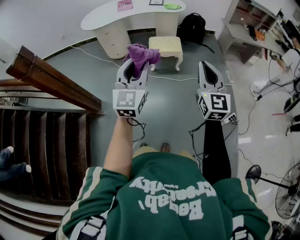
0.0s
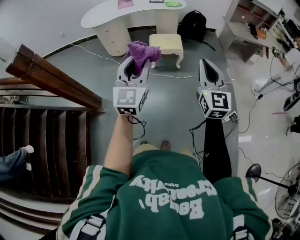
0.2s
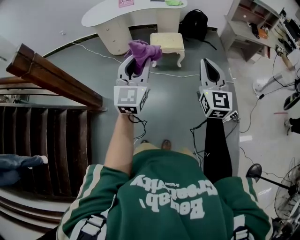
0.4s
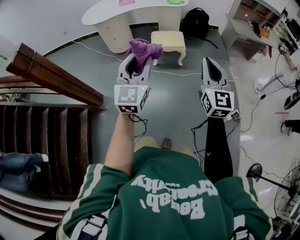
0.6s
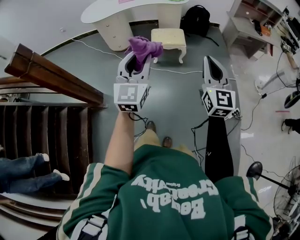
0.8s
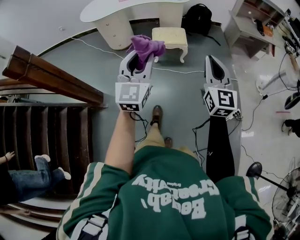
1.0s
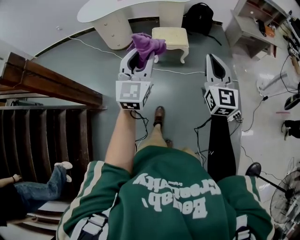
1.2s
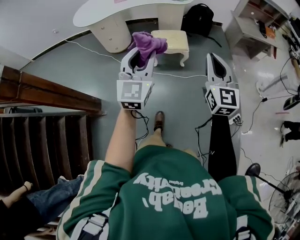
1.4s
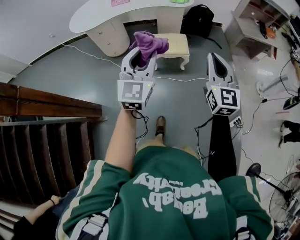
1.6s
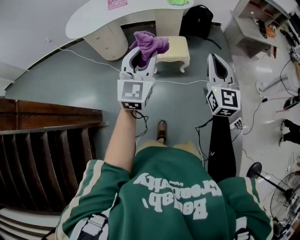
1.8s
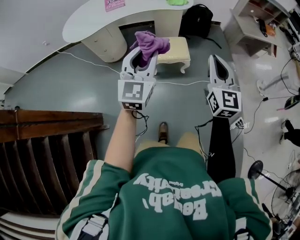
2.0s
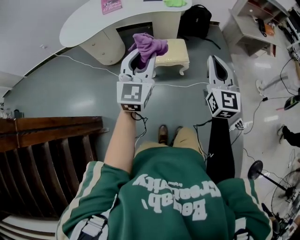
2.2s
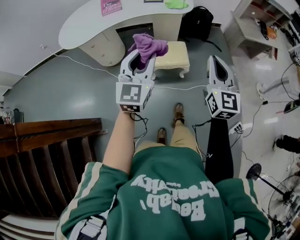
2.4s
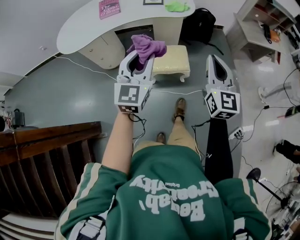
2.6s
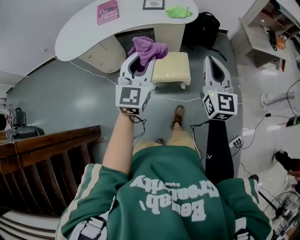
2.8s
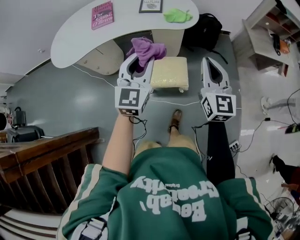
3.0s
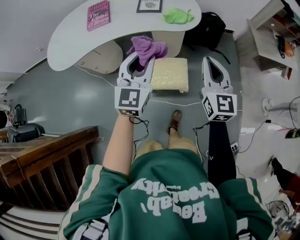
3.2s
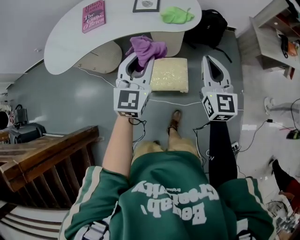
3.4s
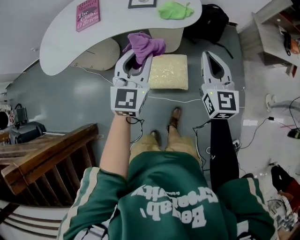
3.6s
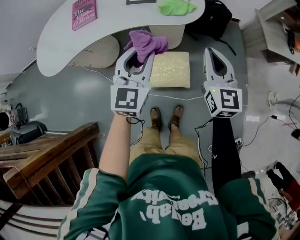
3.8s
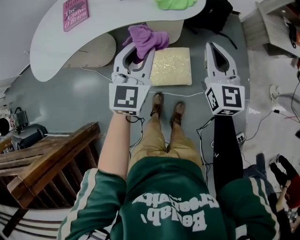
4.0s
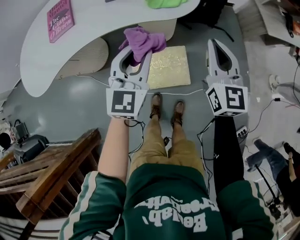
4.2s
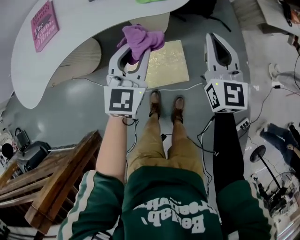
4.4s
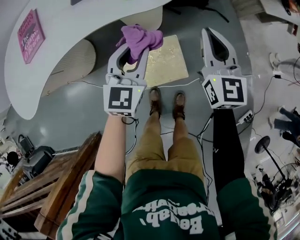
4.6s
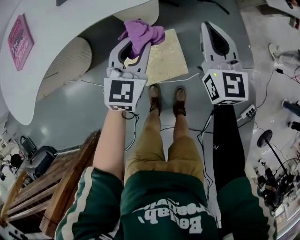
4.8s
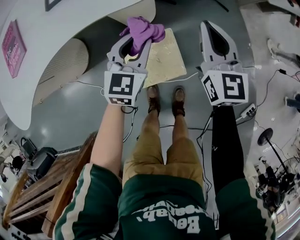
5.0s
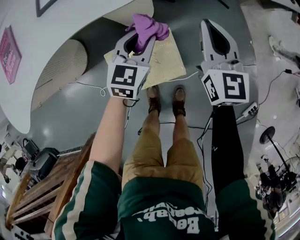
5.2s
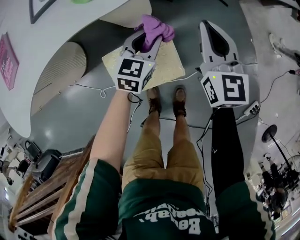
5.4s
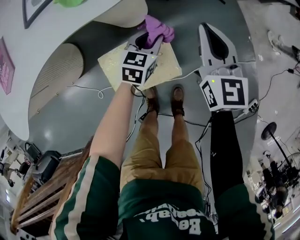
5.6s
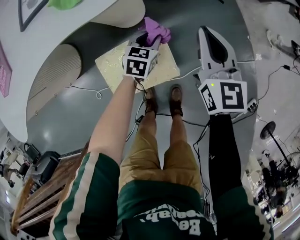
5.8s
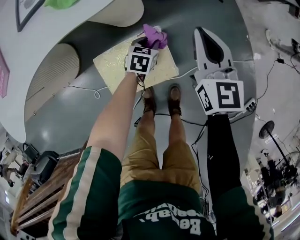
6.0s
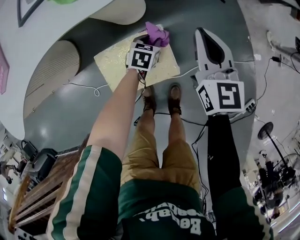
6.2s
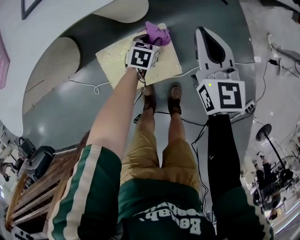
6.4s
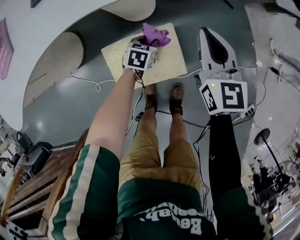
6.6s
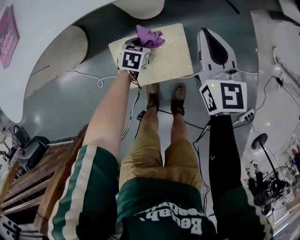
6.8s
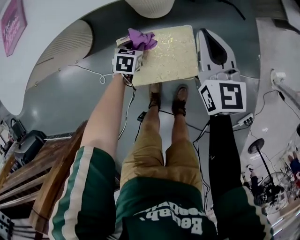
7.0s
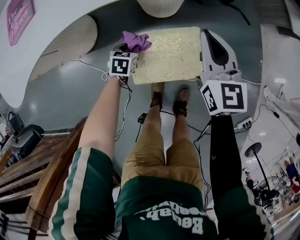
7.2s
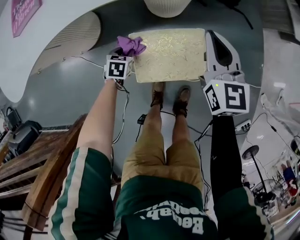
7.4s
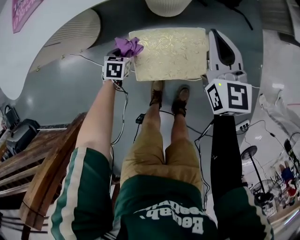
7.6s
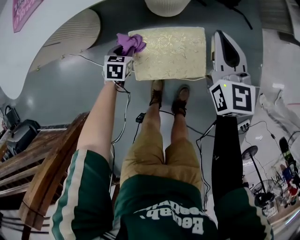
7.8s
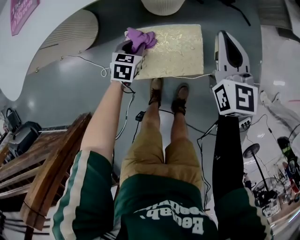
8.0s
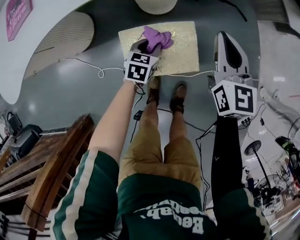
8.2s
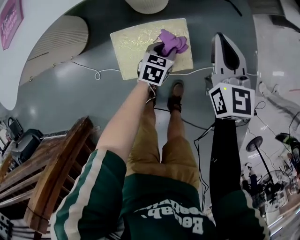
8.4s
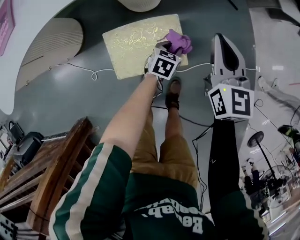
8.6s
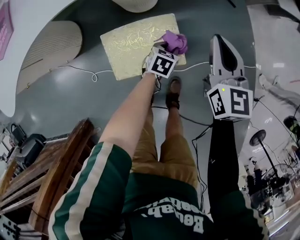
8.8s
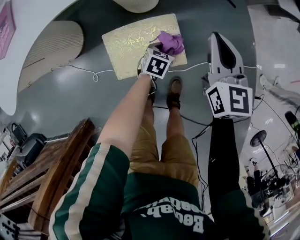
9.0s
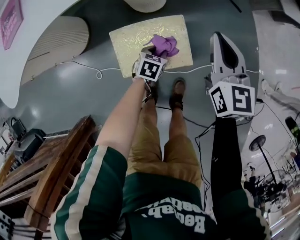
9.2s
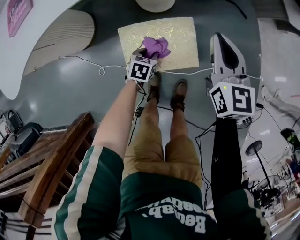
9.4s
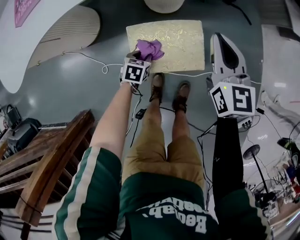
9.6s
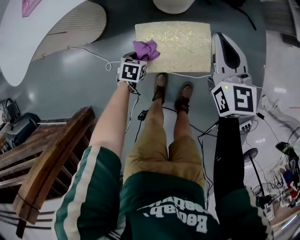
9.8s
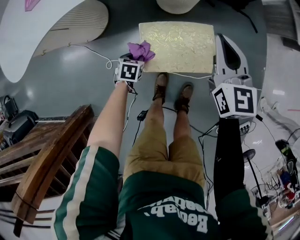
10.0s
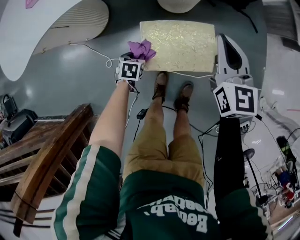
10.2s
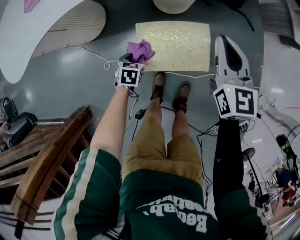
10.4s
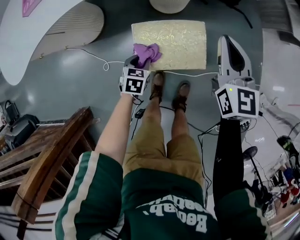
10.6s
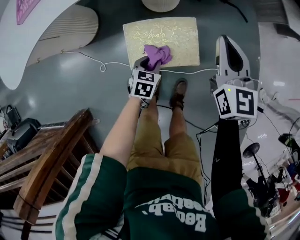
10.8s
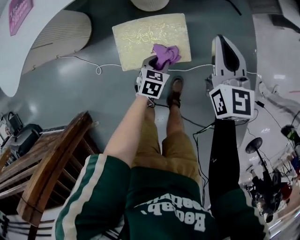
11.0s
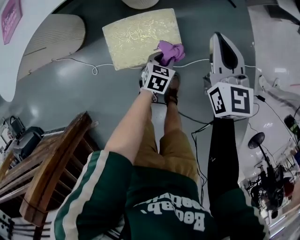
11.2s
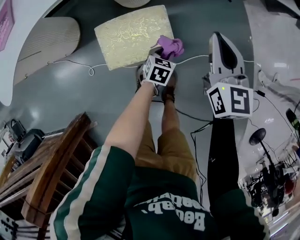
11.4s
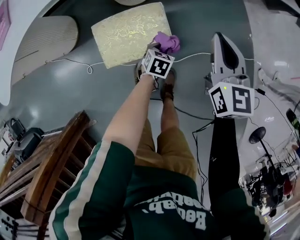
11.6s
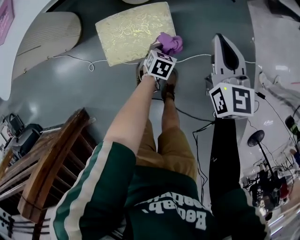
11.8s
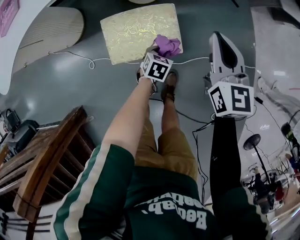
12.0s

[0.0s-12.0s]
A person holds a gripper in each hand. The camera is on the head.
0.0s to 1.6s: The grippers both shift forward by roughly 20 cm.
1.6s to 3.0s: The grippers both shift forward by approximately 35 cm.
3.0s to 4.4s: The grippers both shift forward and downward by some 25 cm.
4.4s to 6.0s: The left gripper shifts approximately 40 cm downward, and points its fingers approximately 40 degrees further downward. Meanwhile the right gripper moves downward, about 15 cm.
6.0s to 7.6s: The right gripper goes approximately 15 cm to the left; the left gripper shifts some 35 cm to the left and backward, and turns by some 20 degrees.
7.6s to 9.0s: The left gripper heads to the right, covering roughly 30 cm, and turns by some 20 degrees; the right gripper moves to the right, some 15 cm.
9.0s to 10.4s: The right gripper travels to the left by approximately 15 cm, while the left gripper shifts roughly 25 cm to the left, and changes its angle by some 20 degrees.
10.4s to 12.0s: The right gripper moves to the right, some 15 cm; the left gripper travels to the right by approximately 25 cm.

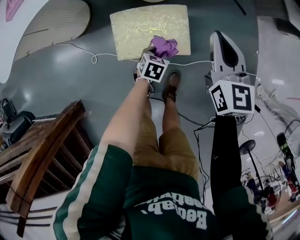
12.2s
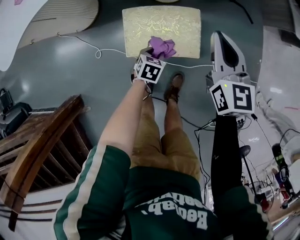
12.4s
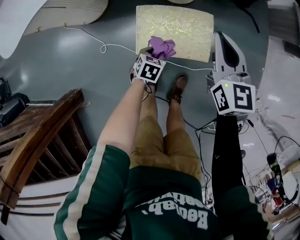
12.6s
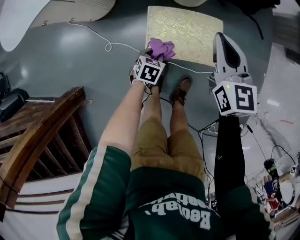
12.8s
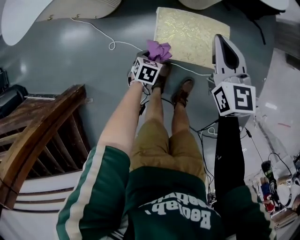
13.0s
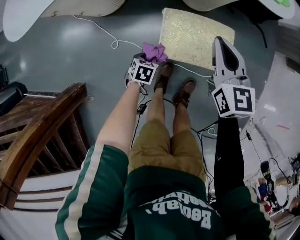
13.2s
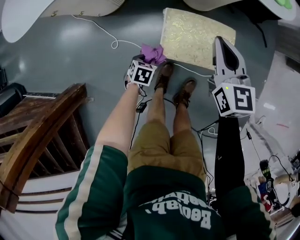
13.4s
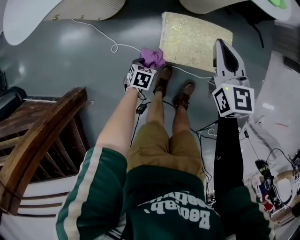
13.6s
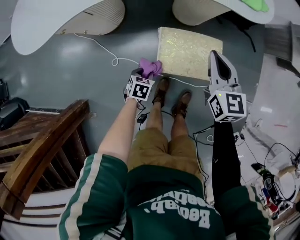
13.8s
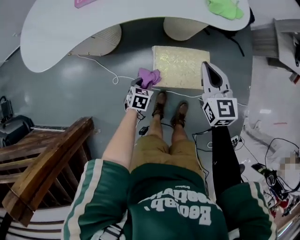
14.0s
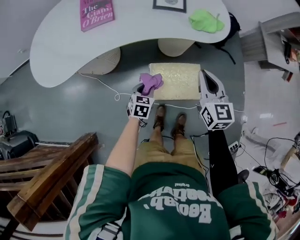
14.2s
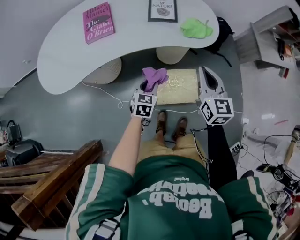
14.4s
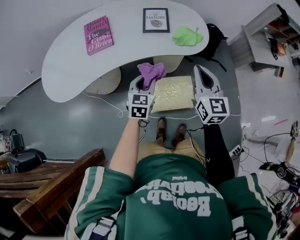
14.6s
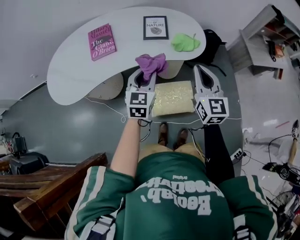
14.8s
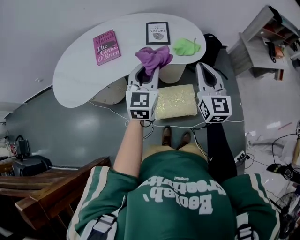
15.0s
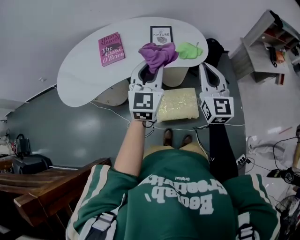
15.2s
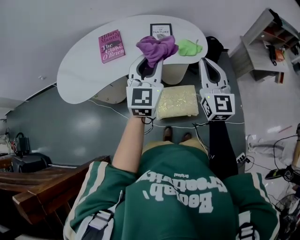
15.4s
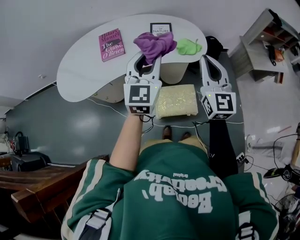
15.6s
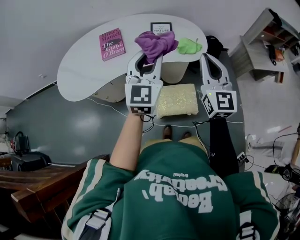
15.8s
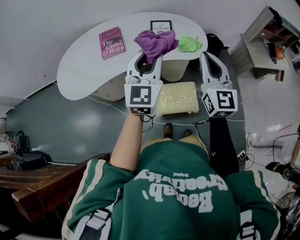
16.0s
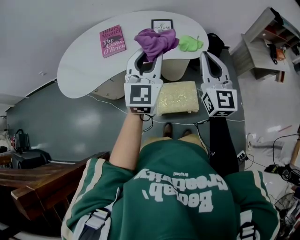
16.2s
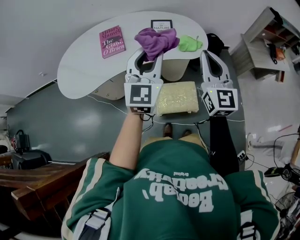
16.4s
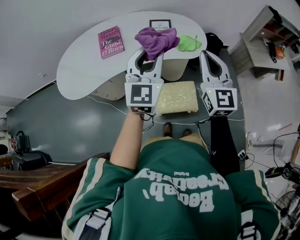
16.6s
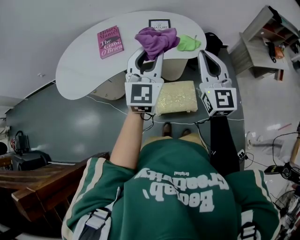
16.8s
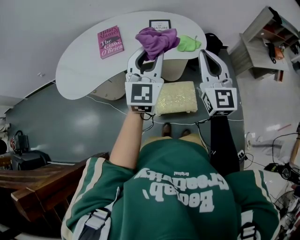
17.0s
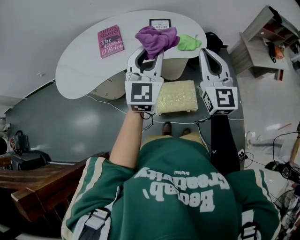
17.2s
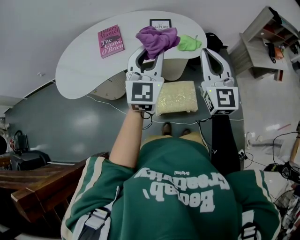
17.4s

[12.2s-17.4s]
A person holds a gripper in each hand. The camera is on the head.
12.2s to 14.0s: The left gripper heads to the left and upward, covering roughly 25 cm; the right gripper travels to the left by approximately 20 cm.
14.0s to 15.6s: The right gripper is displaced upward by about 30 cm, and turns by approximately 30 degrees, while the left gripper goes about 60 cm upward, and tips its fingers upward by about 60 degrees.
15.6s to 17.4s: The grippers move only a little.

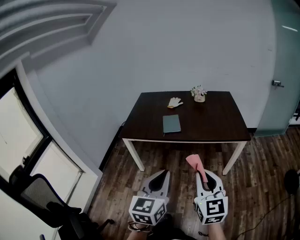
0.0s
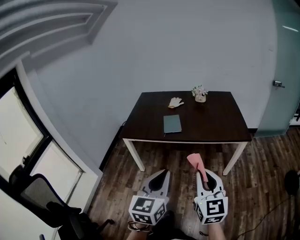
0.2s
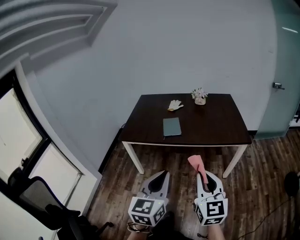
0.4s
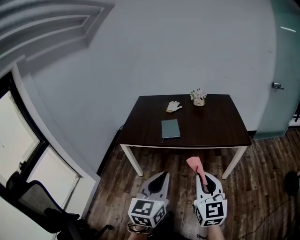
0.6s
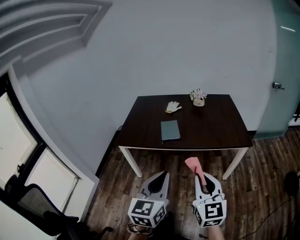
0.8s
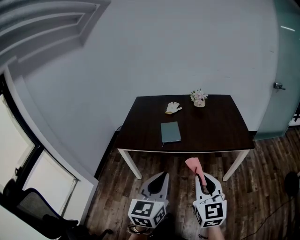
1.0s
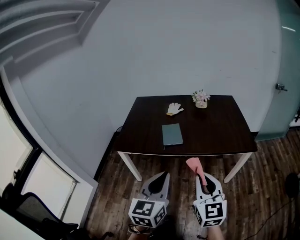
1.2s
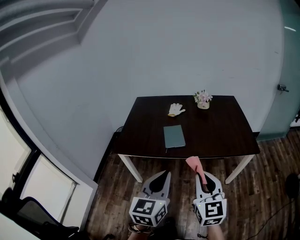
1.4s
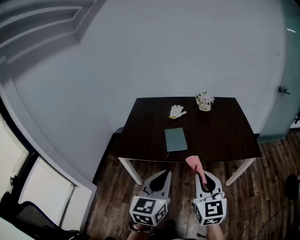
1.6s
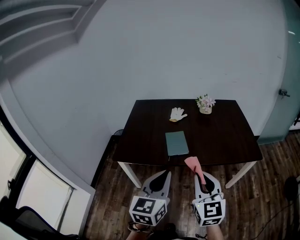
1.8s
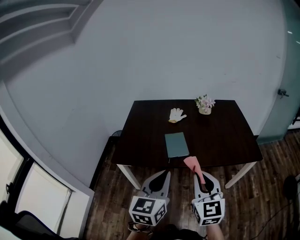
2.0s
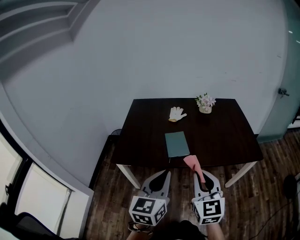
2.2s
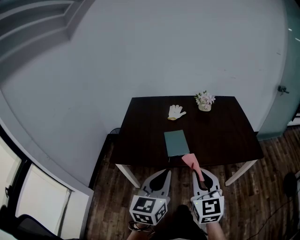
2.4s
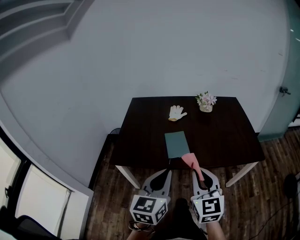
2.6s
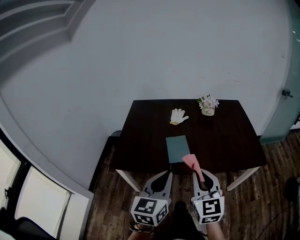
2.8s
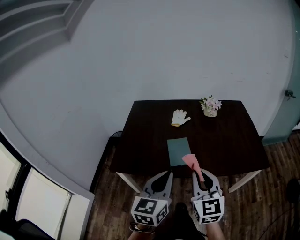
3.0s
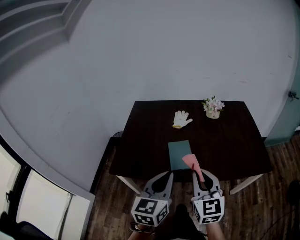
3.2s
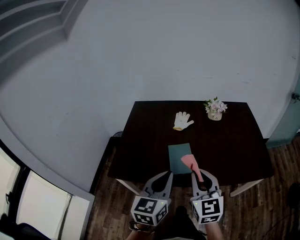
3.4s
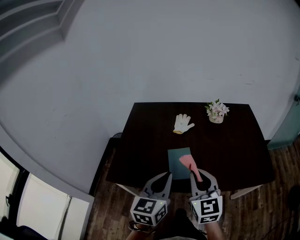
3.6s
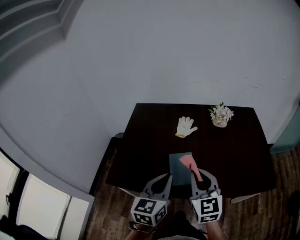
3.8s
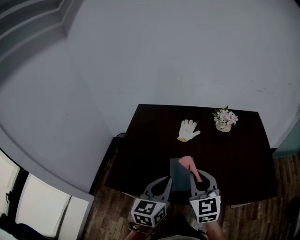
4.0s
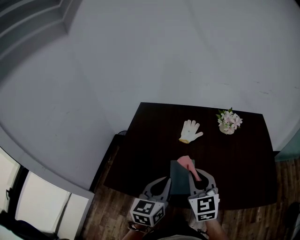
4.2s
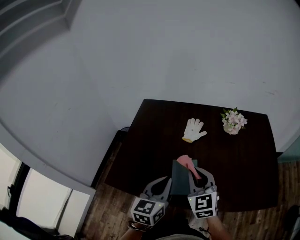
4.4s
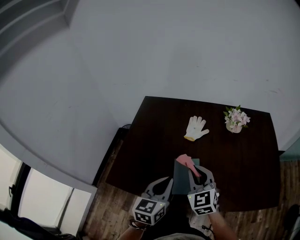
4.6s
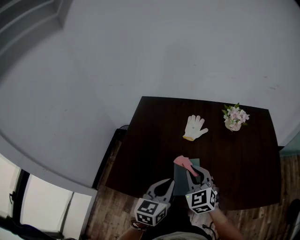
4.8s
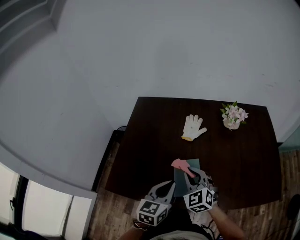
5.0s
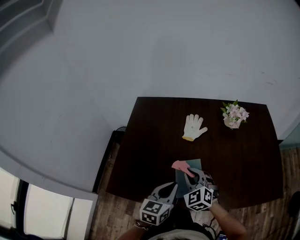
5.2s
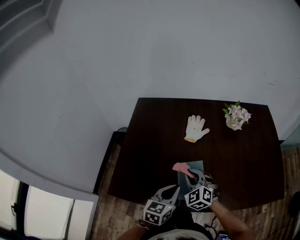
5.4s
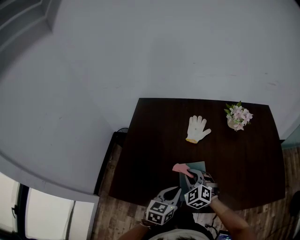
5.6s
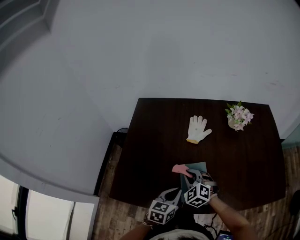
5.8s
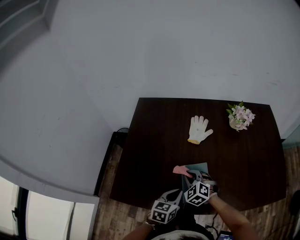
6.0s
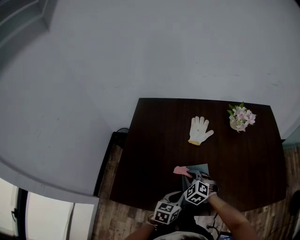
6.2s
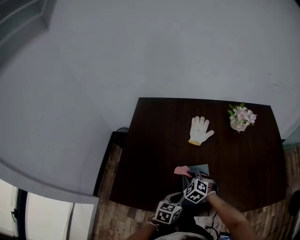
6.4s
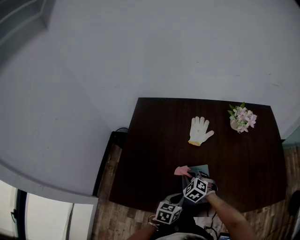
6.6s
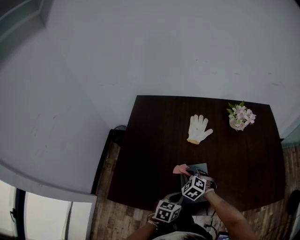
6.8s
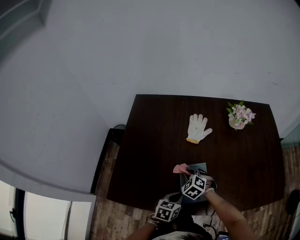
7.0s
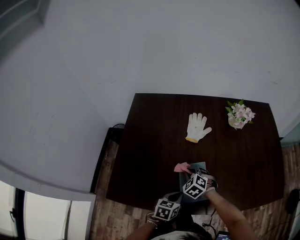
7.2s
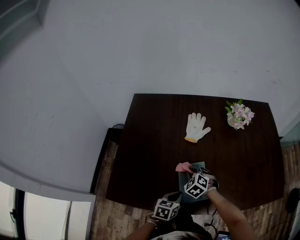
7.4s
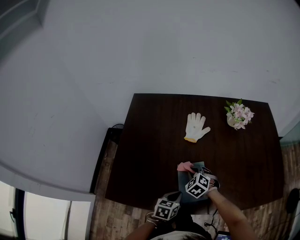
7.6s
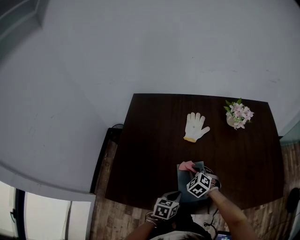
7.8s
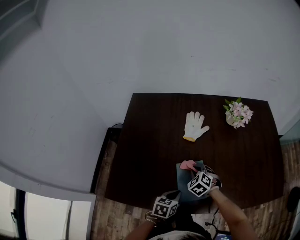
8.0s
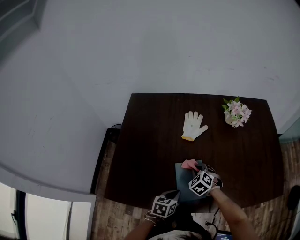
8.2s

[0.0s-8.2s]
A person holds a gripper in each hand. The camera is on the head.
0.0s to 1.6s: The left gripper goes roughly 25 cm forward. Meanwhile the right gripper heads forward and to the left, covering about 25 cm.
1.6s to 3.2s: The two grippers go approximately 20 cm forward.
3.2s to 5.0s: Both grippers move forward and downward, some 30 cm. The right gripper turns by roughly 30 degrees.
5.0s to 6.6s: The left gripper shifts approximately 15 cm downward, and swivels approximately 20 degrees. Meanwhile the right gripper heads downward and forward, covering about 20 cm, and turns by roughly 30 degrees.
6.6s to 8.2s: The right gripper is displaced to the right by some 5 cm.
